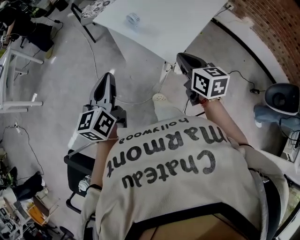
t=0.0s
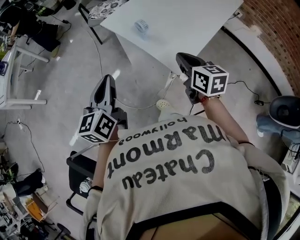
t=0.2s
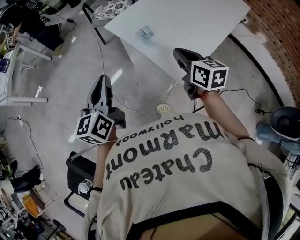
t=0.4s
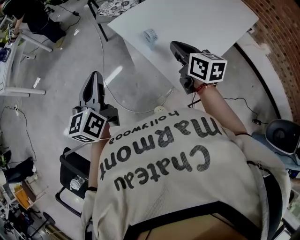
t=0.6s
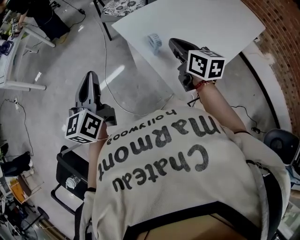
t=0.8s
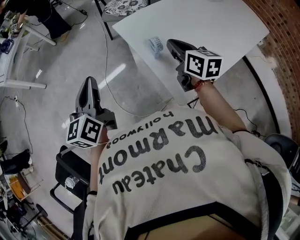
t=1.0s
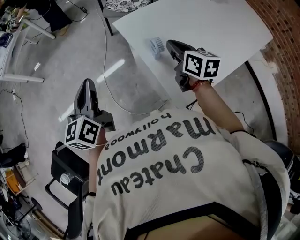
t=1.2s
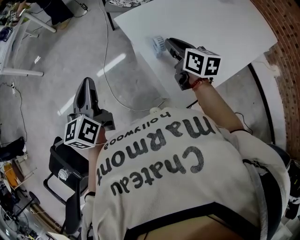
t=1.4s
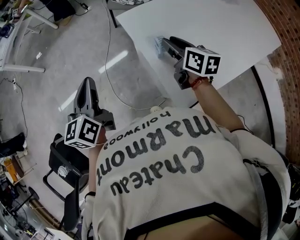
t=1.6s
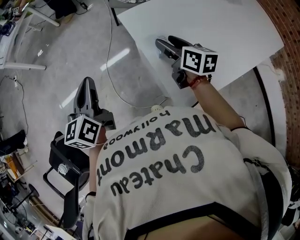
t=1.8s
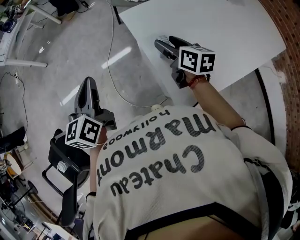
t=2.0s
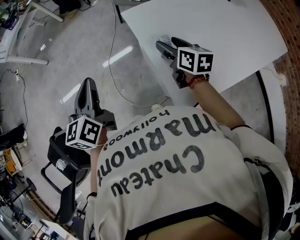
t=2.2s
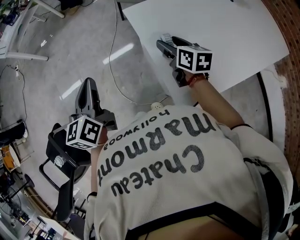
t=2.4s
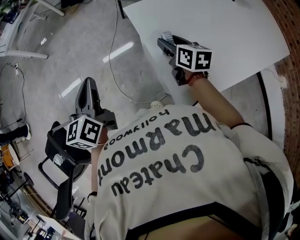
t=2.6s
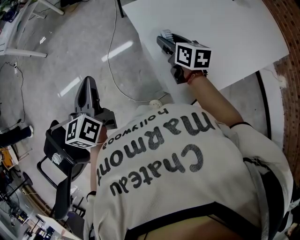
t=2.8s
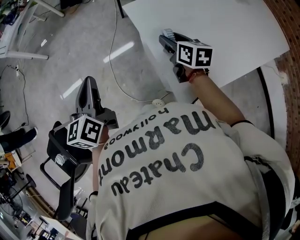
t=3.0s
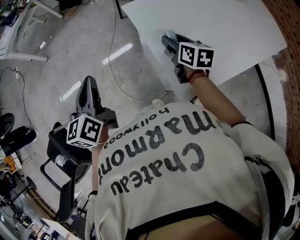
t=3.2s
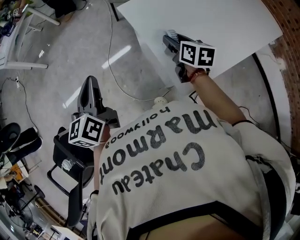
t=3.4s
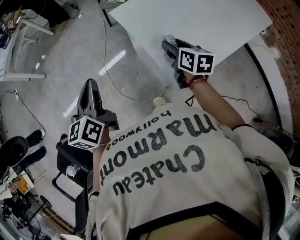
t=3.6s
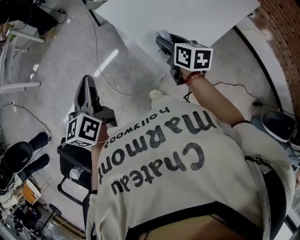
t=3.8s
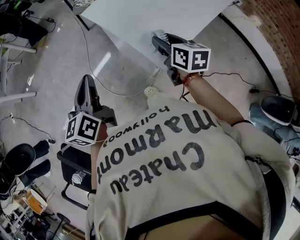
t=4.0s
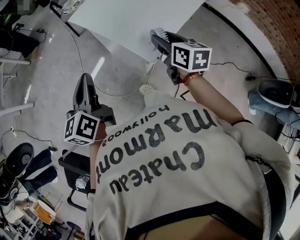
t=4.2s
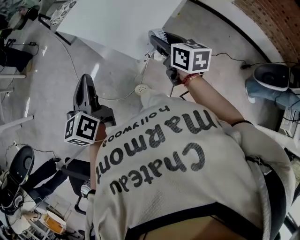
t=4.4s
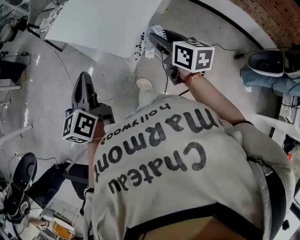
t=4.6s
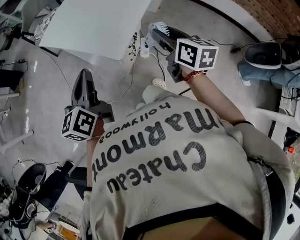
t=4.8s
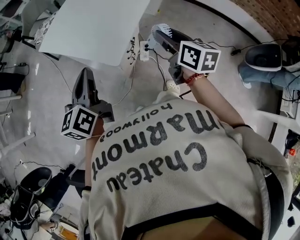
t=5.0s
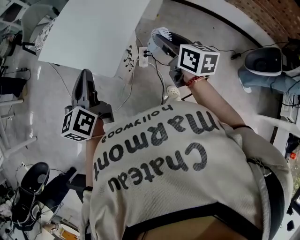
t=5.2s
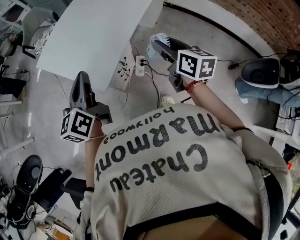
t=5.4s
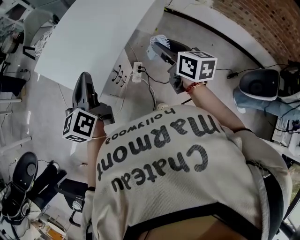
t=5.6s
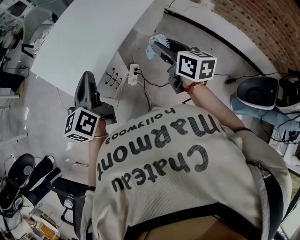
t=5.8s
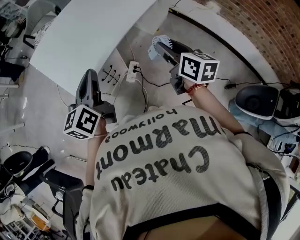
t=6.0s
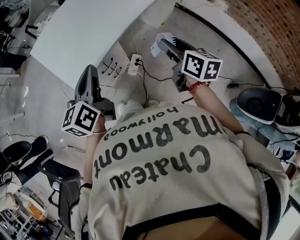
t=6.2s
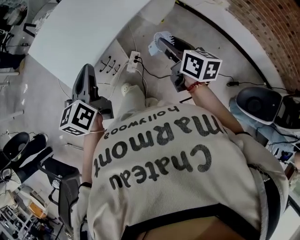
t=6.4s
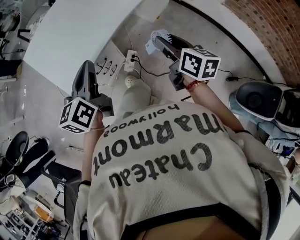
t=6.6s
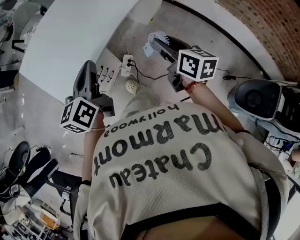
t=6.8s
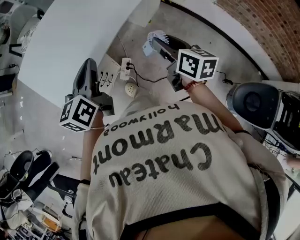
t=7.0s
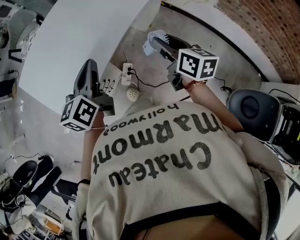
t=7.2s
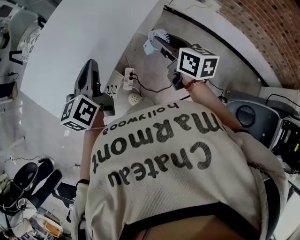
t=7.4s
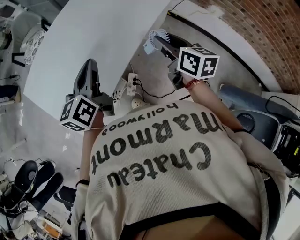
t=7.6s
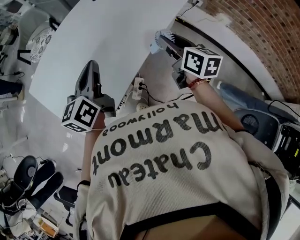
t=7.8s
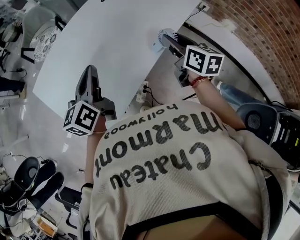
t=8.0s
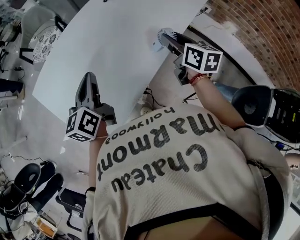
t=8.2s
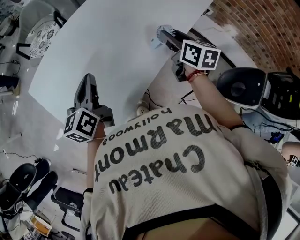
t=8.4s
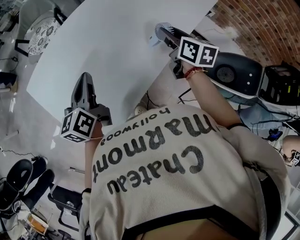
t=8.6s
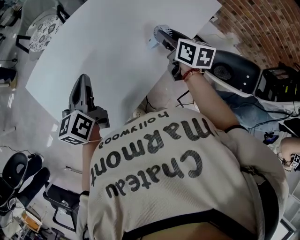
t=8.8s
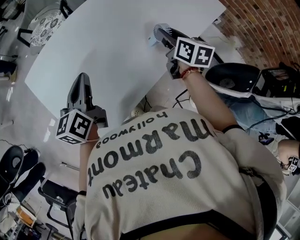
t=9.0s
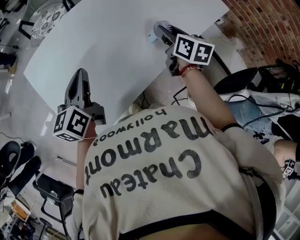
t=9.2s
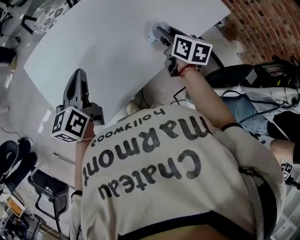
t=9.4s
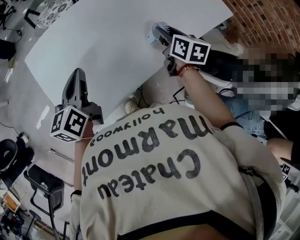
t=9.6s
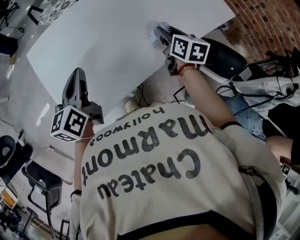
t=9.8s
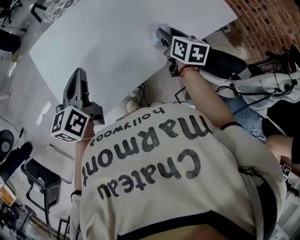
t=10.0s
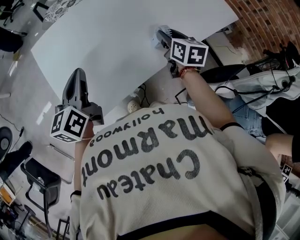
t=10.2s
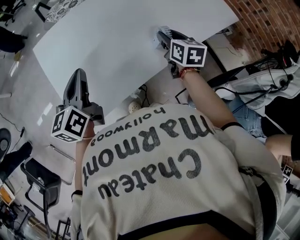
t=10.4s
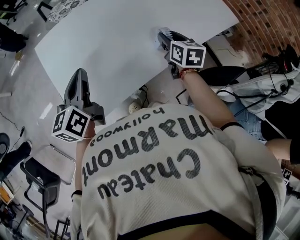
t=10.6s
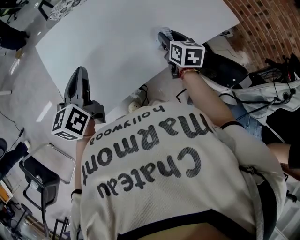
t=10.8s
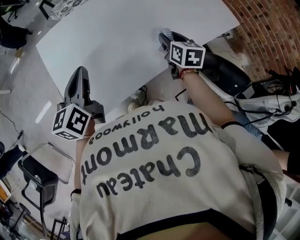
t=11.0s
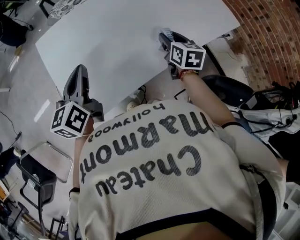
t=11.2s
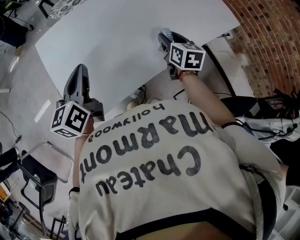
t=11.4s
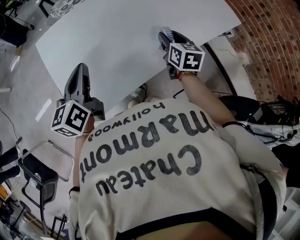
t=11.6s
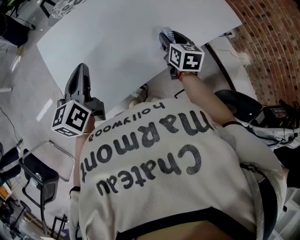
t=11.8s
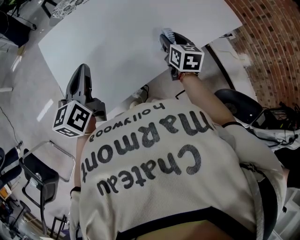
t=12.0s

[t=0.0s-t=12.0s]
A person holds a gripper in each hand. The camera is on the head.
t=0.0s to t=1.6s: The right gripper moves approximately 35 cm, swivels roughly 20 degrees, and opens up. The left gripper moves roughly 20 cm, and changes its angle by roughly 30 degrees.
t=1.6s to t=3.0s: The right gripper changes place by about 5 cm.
t=3.0s to t=4.4s: The right gripper shifts by approximately 35 cm, and rotates roughly 30 degrees; the left gripper moves about 20 cm, and changes its angle by approximately 30 degrees.
t=4.4s to t=6.0s: Both grippers travel together to the right, approximately 35 cm.
t=6.0s to t=7.6s: Both grippers move forward, some 25 cm.
t=7.6s to t=9.0s: The left gripper is displaced to the left and forward by roughly 15 cm. The right gripper travels forward and to the left by about 25 cm.
t=9.0s to t=10.4s: The right gripper heads to the left, covering about 5 cm. Meanwhile the left gripper goes about 10 cm backward and to the left.
t=10.4s to t=12.0s: The grippers move only a little.

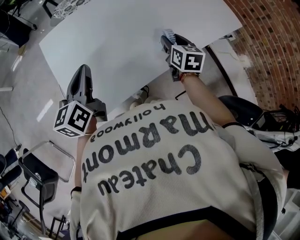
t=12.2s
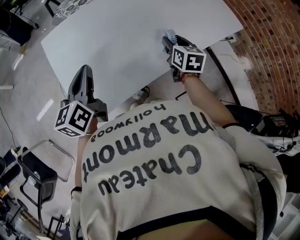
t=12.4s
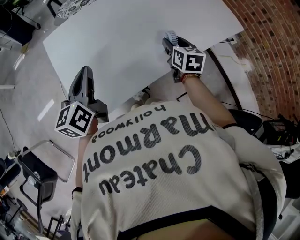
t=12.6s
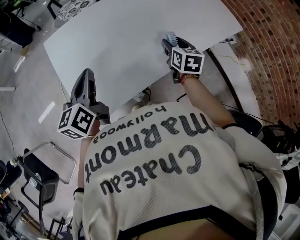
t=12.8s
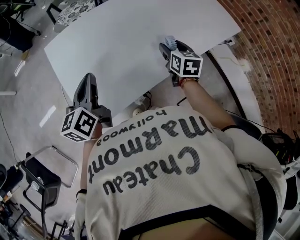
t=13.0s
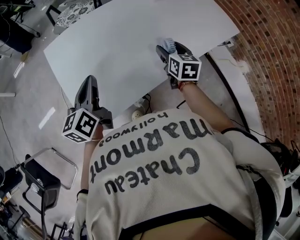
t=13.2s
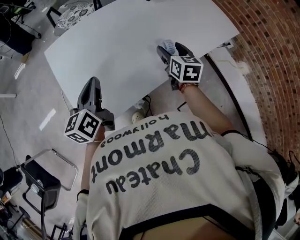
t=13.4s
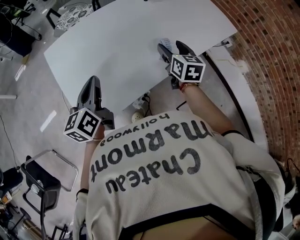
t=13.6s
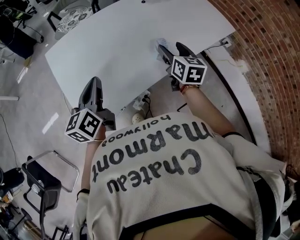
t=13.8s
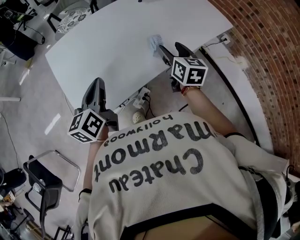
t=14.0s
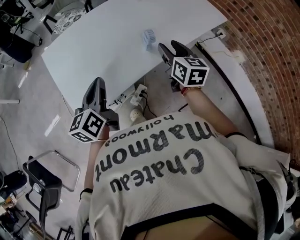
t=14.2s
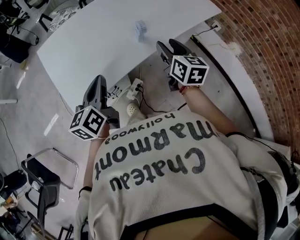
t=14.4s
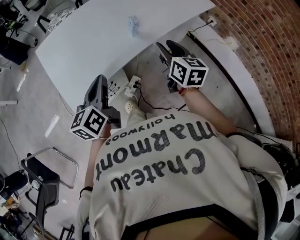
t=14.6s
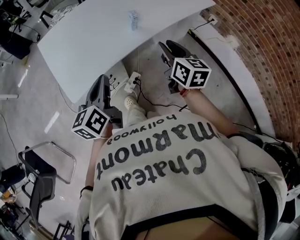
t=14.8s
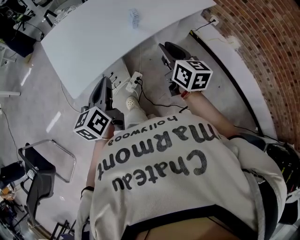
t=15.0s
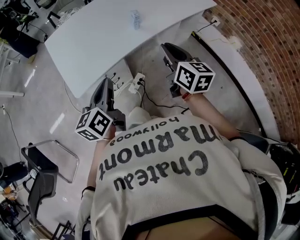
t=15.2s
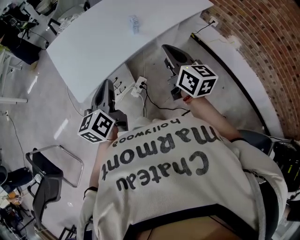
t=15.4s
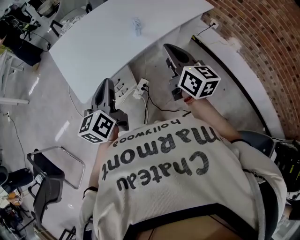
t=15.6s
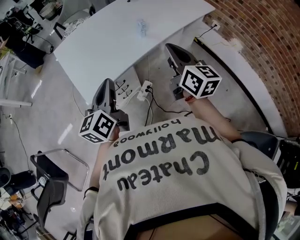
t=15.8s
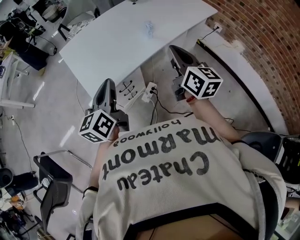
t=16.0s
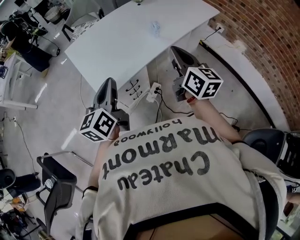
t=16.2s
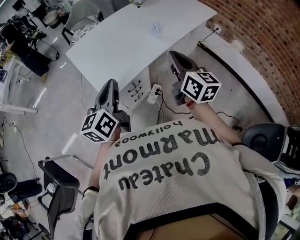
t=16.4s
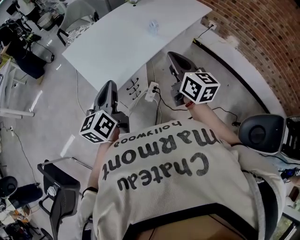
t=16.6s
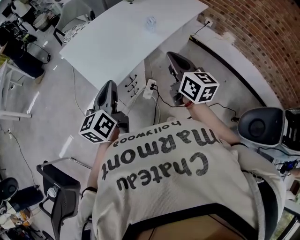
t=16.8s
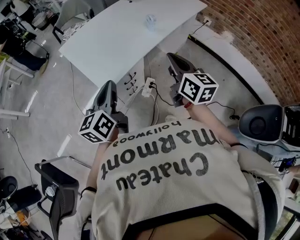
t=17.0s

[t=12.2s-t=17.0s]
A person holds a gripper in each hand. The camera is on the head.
t=12.2s to t=13.8s: The right gripper goes some 5 cm upward, and opens up.
t=13.8s to t=15.4s: The left gripper moves backward and to the right, about 25 cm. Meanwhile the right gripper moves backward, about 25 cm, changes its angle by roughly 20 degrees, and closes.
t=15.4s to t=17.0s: The two grippers go approximately 20 cm to the left and backward.

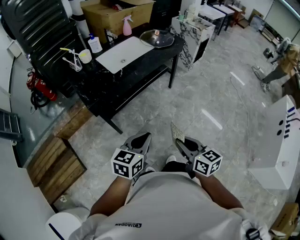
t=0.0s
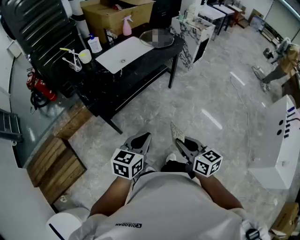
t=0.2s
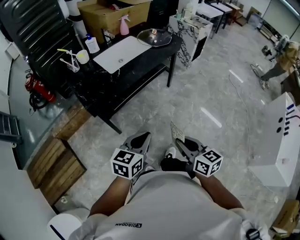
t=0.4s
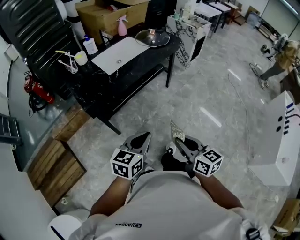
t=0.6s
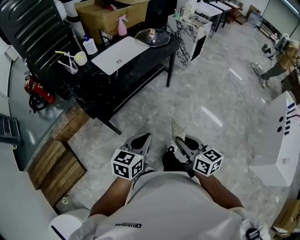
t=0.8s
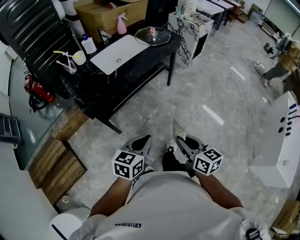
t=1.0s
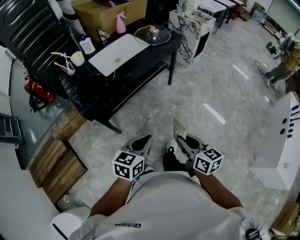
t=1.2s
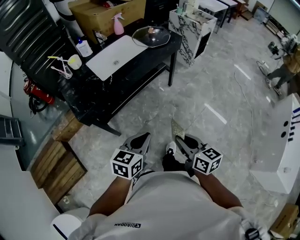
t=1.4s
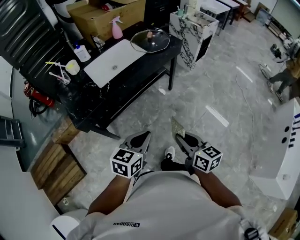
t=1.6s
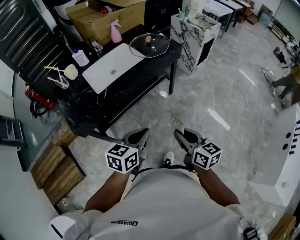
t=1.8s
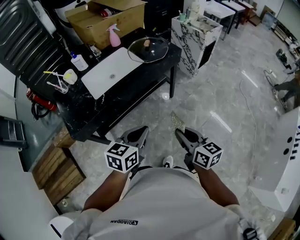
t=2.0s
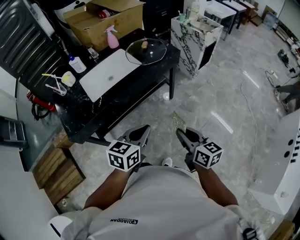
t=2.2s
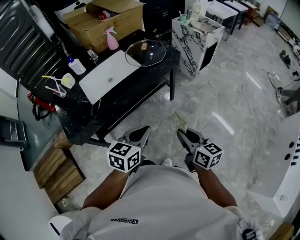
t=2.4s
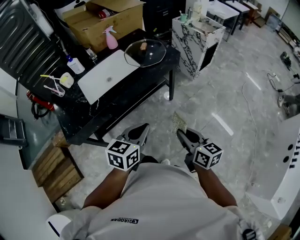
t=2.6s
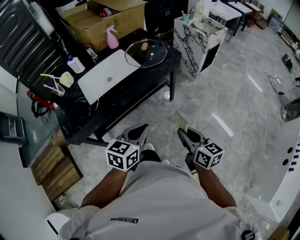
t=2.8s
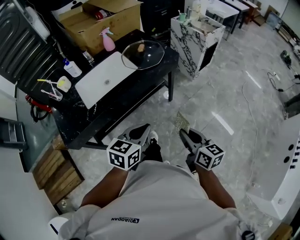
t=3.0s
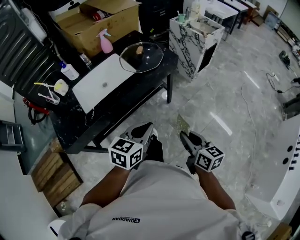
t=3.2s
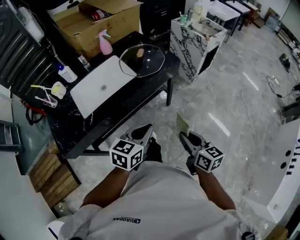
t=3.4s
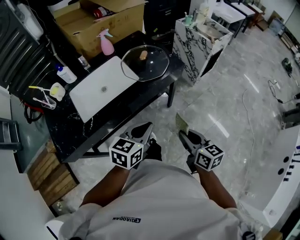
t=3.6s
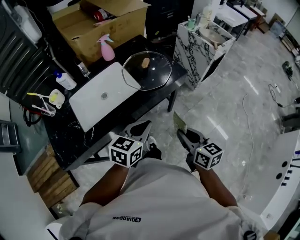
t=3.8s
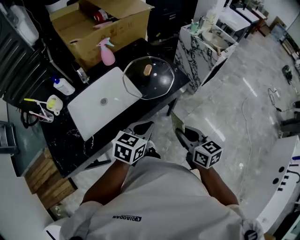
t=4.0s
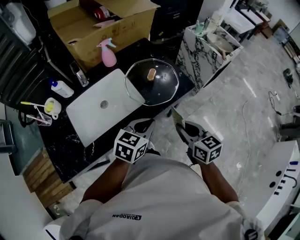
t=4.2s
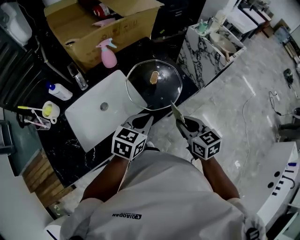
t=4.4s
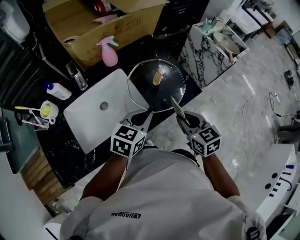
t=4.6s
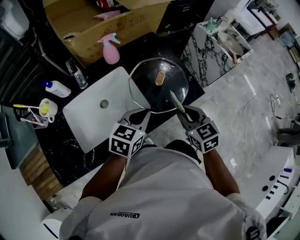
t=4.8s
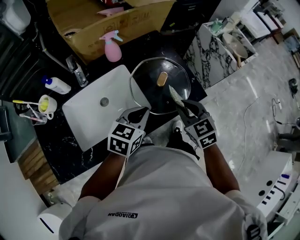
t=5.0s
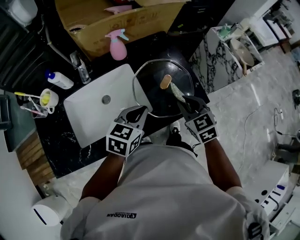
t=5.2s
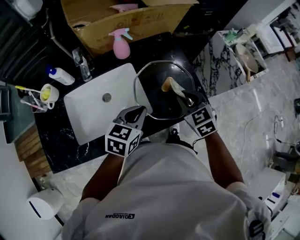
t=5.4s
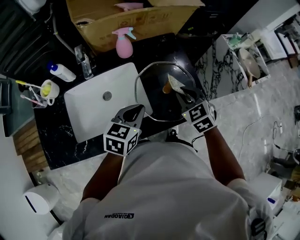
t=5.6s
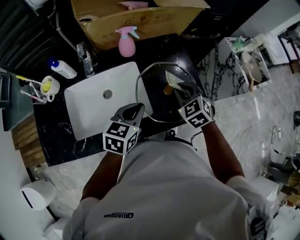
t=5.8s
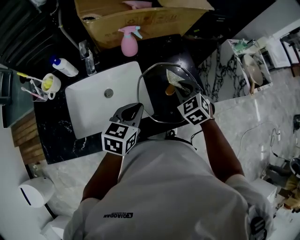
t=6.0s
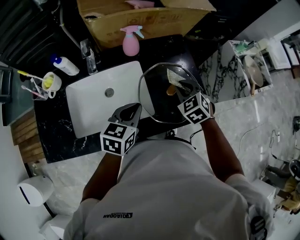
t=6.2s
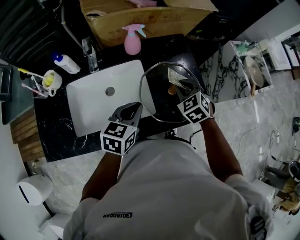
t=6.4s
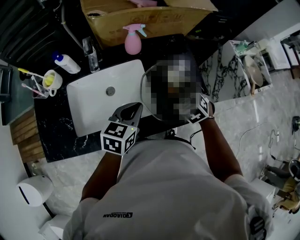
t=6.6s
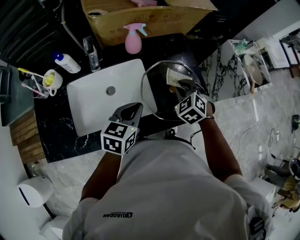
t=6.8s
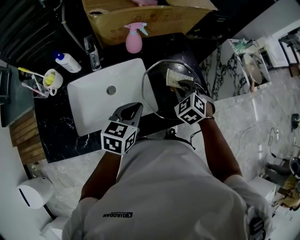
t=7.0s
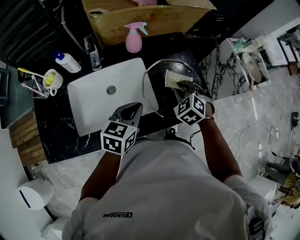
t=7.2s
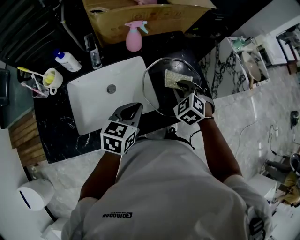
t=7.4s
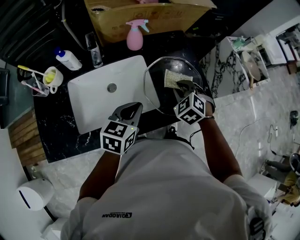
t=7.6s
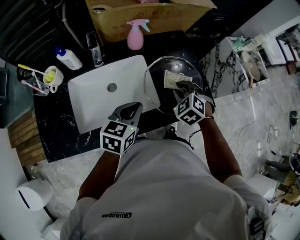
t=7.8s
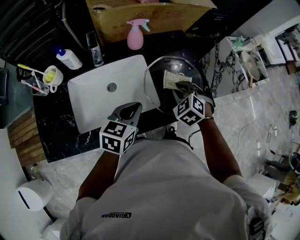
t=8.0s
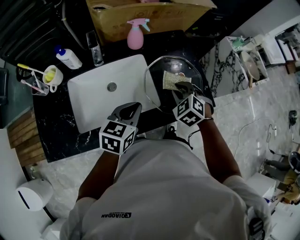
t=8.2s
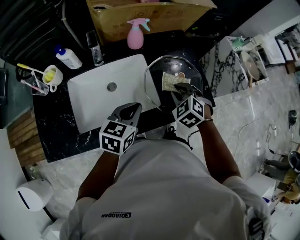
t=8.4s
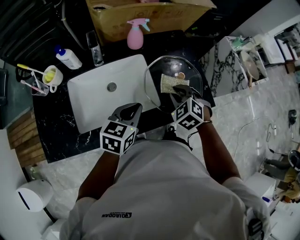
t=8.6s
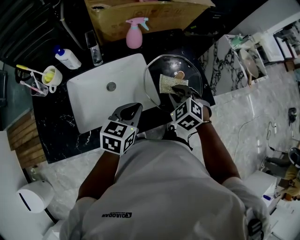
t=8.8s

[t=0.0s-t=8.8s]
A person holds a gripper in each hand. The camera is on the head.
t=0.0s to t=1.4s: Both grippers move forward and to the right, about 10 cm.
t=1.4s to t=3.0s: The grippers both shift forward and to the right by roughly 30 cm.
t=3.0s to t=4.4s: The two grippers go approximately 35 cm forward. The right gripper swivels some 30 degrees.
t=4.4s to t=5.8s: The right gripper travels forward by some 25 cm, and rotates around the line of its fingers by some 50 degrees, counterclockwise from behind. Meanwhile the left gripper heads forward and to the left, covering some 15 cm, and turns by some 20 degrees.
t=5.8s to t=7.4s: The left gripper shifts by approximately 5 cm.
t=7.4s to t=8.8s: The grippers make only small movements.
